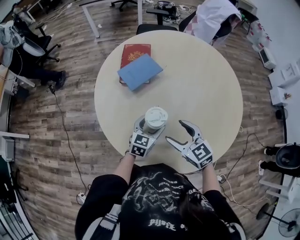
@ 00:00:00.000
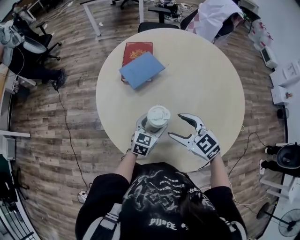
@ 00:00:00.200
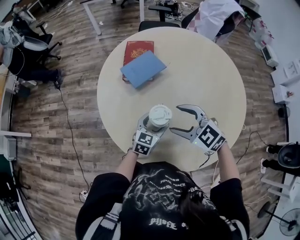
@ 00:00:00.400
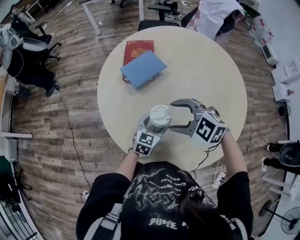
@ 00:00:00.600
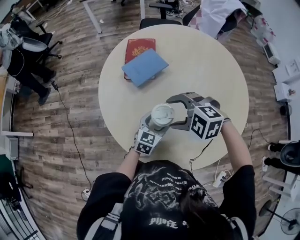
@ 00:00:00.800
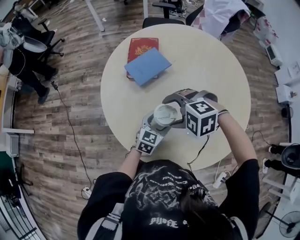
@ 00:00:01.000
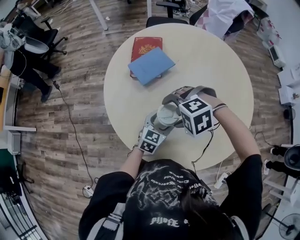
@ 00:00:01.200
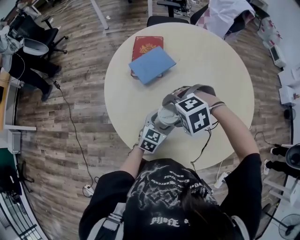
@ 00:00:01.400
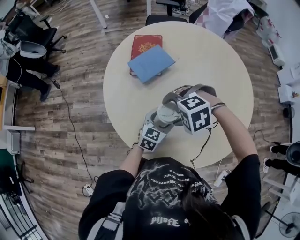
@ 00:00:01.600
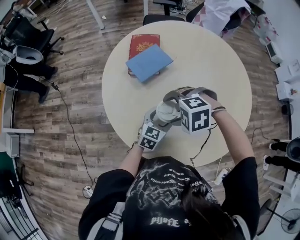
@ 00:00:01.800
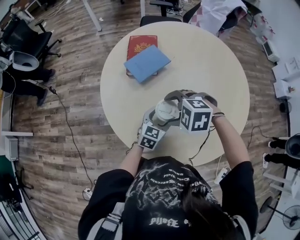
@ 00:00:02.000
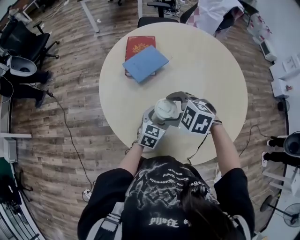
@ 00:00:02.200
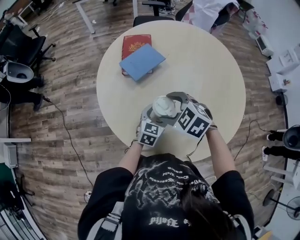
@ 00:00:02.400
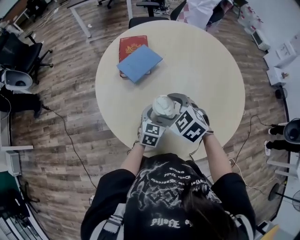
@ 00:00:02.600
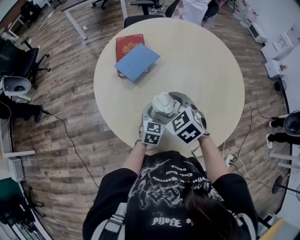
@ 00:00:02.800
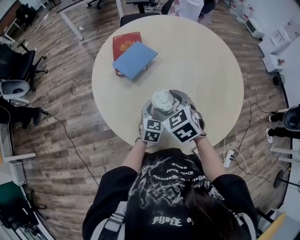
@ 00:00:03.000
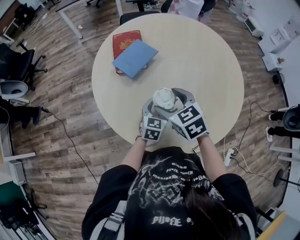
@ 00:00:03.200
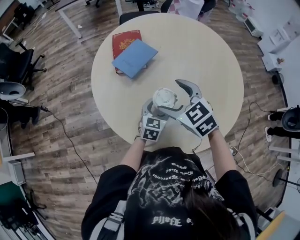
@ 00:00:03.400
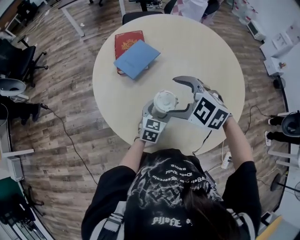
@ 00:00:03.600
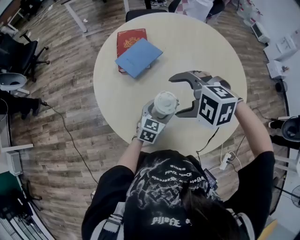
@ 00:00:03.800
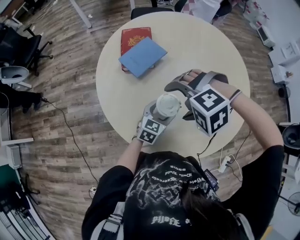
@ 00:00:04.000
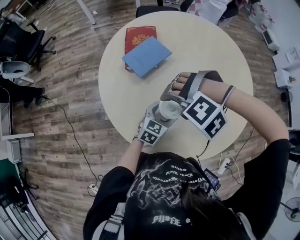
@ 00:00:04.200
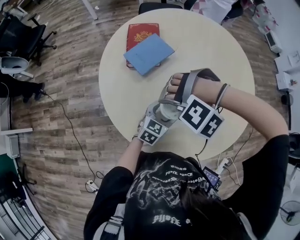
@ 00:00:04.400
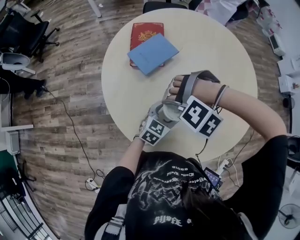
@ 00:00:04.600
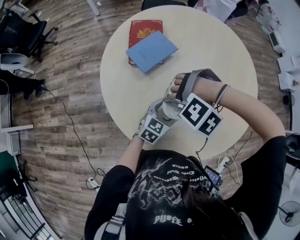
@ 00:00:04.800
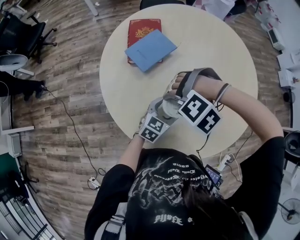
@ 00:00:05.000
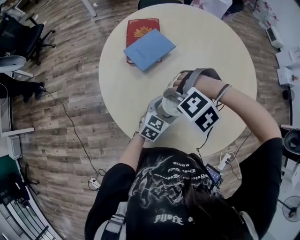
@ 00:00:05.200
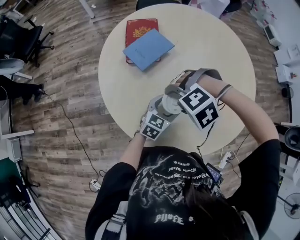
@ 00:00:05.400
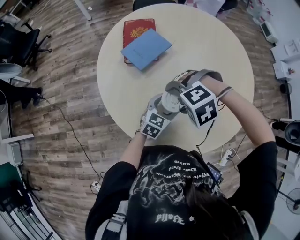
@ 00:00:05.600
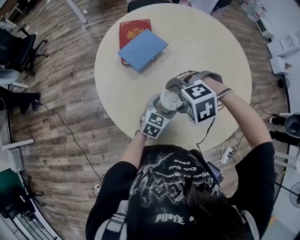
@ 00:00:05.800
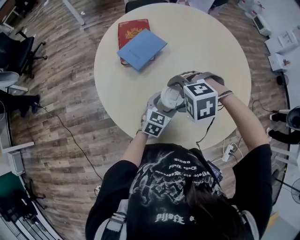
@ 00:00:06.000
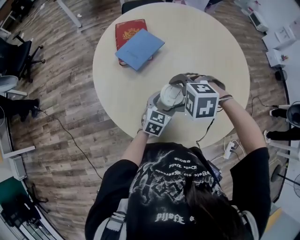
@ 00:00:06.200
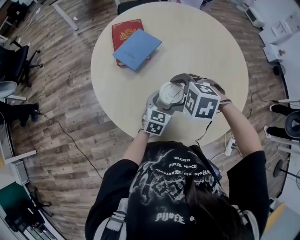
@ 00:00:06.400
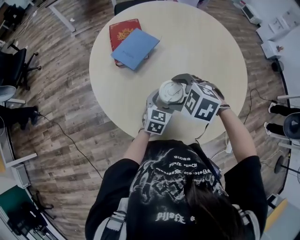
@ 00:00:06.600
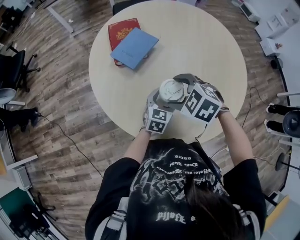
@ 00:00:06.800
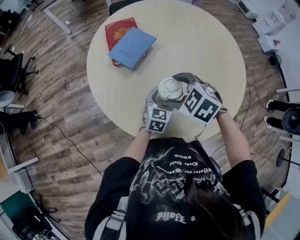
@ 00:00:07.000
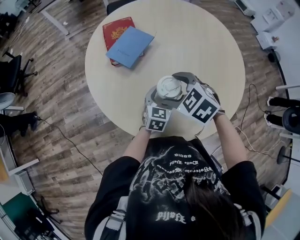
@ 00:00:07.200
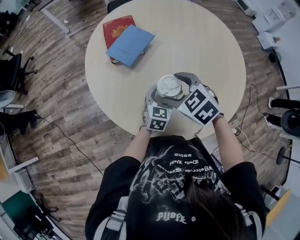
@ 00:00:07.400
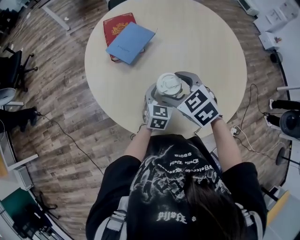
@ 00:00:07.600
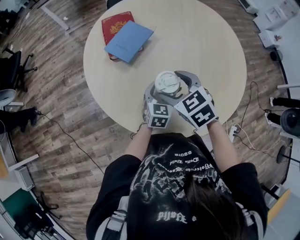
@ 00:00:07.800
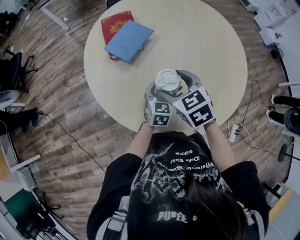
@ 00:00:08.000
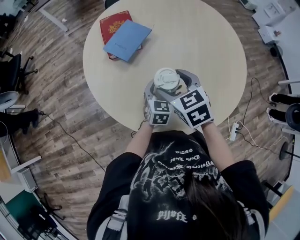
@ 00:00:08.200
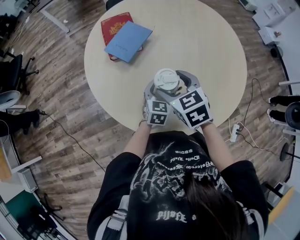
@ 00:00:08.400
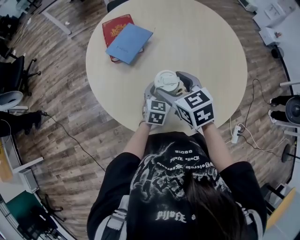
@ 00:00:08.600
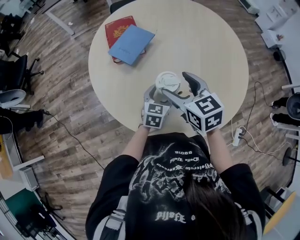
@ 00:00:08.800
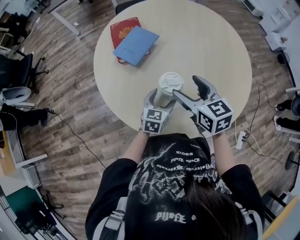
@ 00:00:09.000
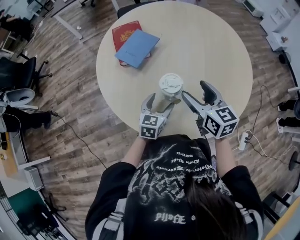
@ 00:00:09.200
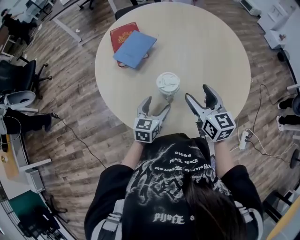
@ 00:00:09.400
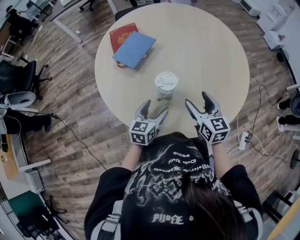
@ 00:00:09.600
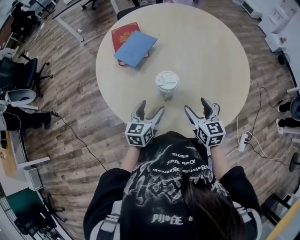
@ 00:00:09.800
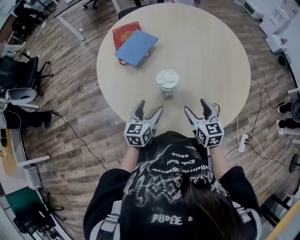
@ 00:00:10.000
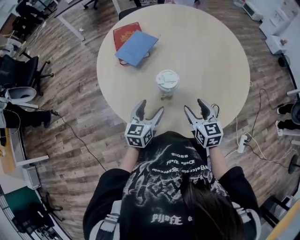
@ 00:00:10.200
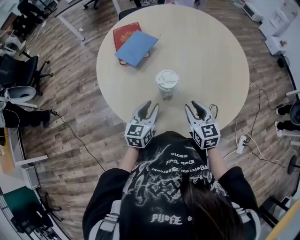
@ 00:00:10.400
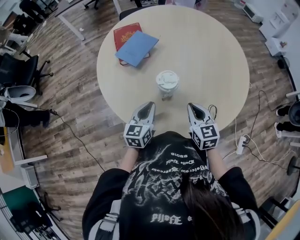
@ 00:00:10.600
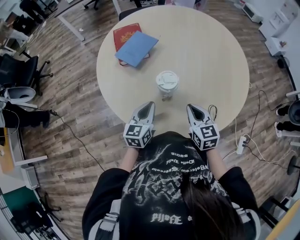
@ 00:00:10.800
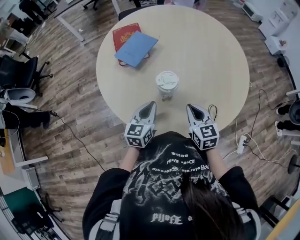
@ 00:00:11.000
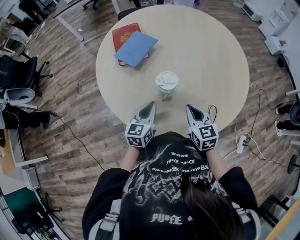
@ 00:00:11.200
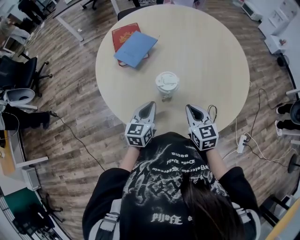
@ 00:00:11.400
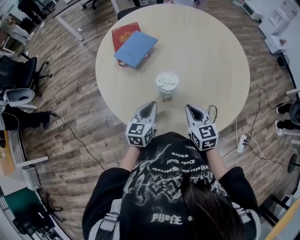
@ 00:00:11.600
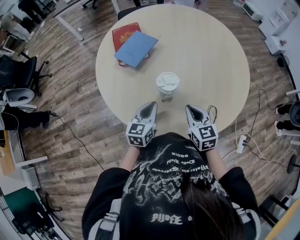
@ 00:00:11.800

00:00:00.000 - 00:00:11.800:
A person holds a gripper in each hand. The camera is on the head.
00:00:00.000 - 00:00:01.400: The right gripper moves approximately 10 cm, and tips its fingers downward by roughly 50 degrees.
00:00:01.400 - 00:00:03.000: The right gripper rotates around the line of its fingers by about 70 degrees, clockwise from behind.
00:00:03.000 - 00:00:04.400: The right gripper rolls counterclockwise, seen from behind, by some 100 degrees.
00:00:04.400 - 00:00:06.000: The right gripper rotates around the line of its fingers by about 50 degrees, clockwise from behind.
00:00:06.000 - 00:00:07.400: The right gripper rotates around the line of its fingers by roughly 50 degrees, clockwise from behind.
00:00:07.400 - 00:00:08.800: The right gripper swivels roughly 30 degrees.
00:00:08.800 - 00:00:10.400: The right gripper heads downward, to the right and backward, covering about 15 cm, and closes, while the left gripper moves backward and to the left, approximately 10 cm, and closes up.
00:00:10.400 - 00:00:11.800: The left gripper closes up.

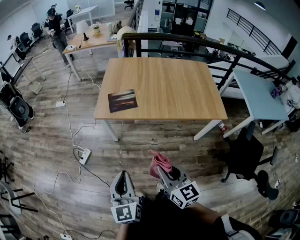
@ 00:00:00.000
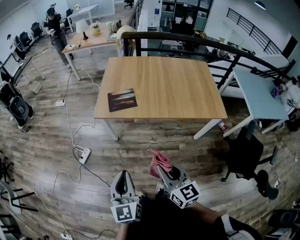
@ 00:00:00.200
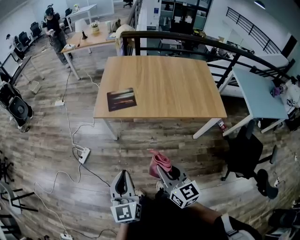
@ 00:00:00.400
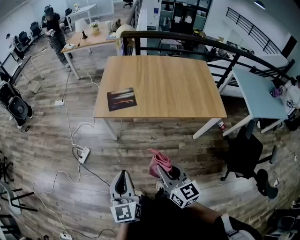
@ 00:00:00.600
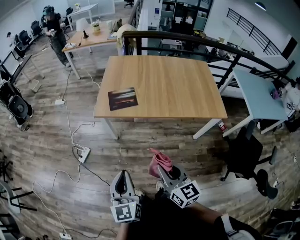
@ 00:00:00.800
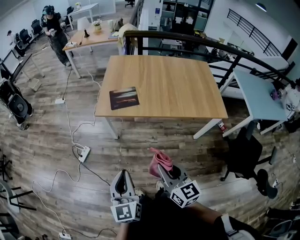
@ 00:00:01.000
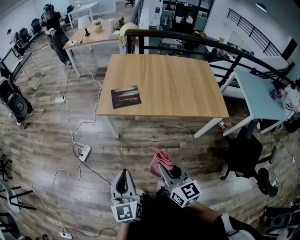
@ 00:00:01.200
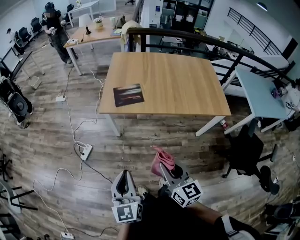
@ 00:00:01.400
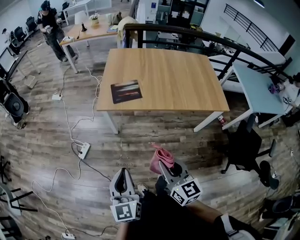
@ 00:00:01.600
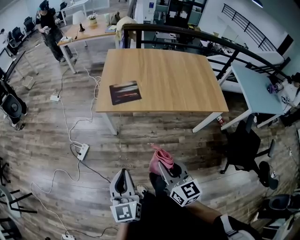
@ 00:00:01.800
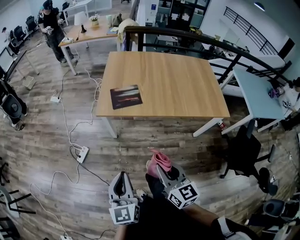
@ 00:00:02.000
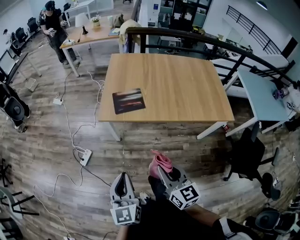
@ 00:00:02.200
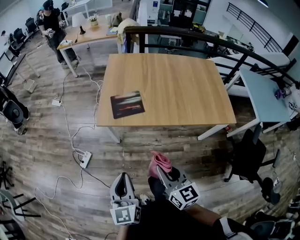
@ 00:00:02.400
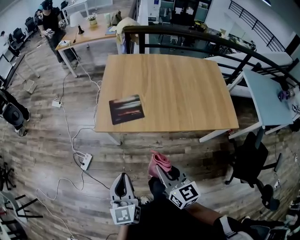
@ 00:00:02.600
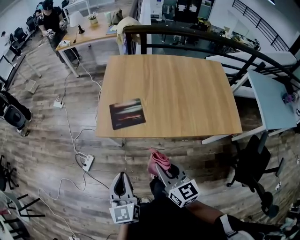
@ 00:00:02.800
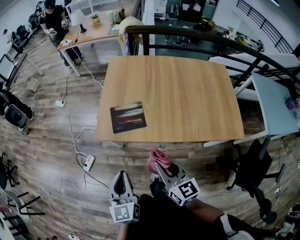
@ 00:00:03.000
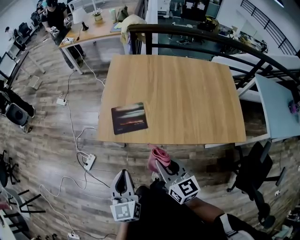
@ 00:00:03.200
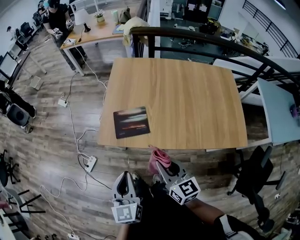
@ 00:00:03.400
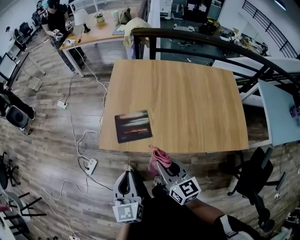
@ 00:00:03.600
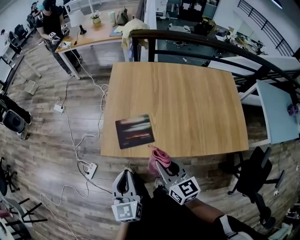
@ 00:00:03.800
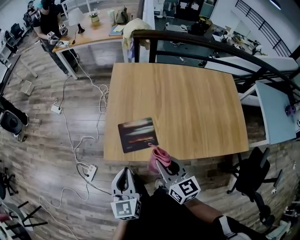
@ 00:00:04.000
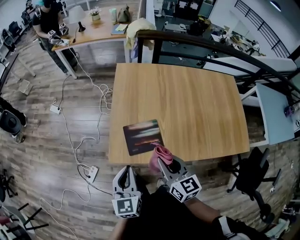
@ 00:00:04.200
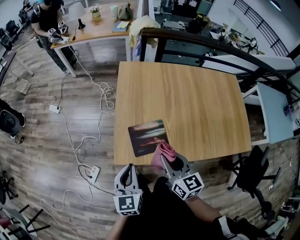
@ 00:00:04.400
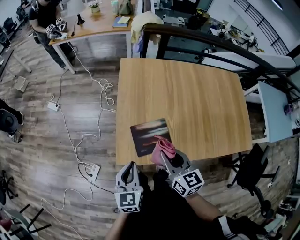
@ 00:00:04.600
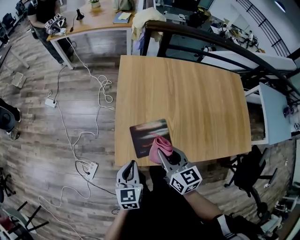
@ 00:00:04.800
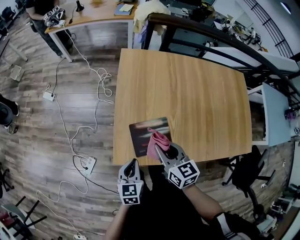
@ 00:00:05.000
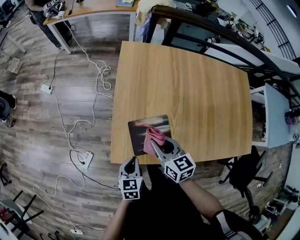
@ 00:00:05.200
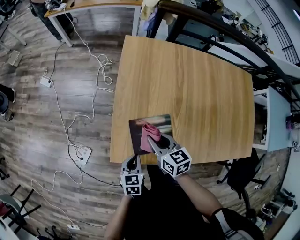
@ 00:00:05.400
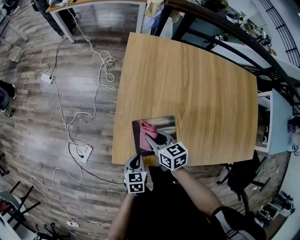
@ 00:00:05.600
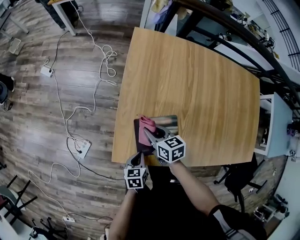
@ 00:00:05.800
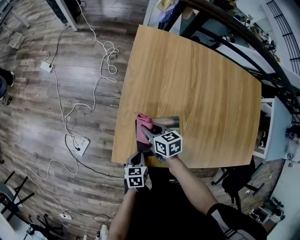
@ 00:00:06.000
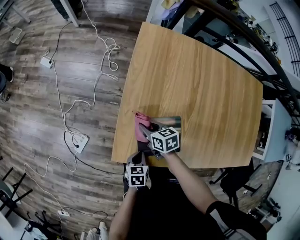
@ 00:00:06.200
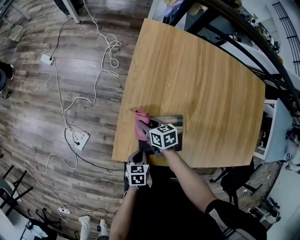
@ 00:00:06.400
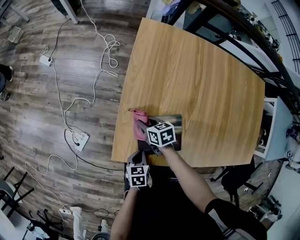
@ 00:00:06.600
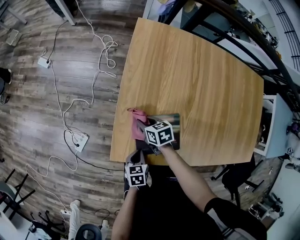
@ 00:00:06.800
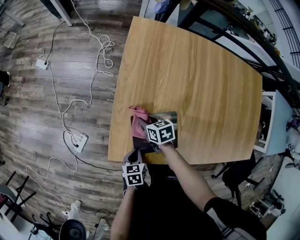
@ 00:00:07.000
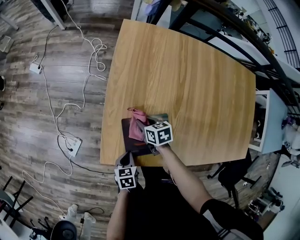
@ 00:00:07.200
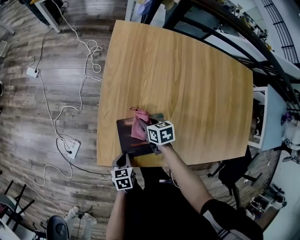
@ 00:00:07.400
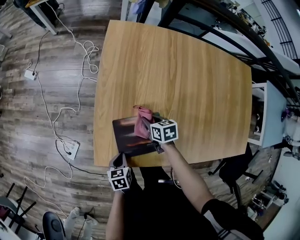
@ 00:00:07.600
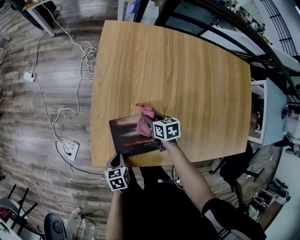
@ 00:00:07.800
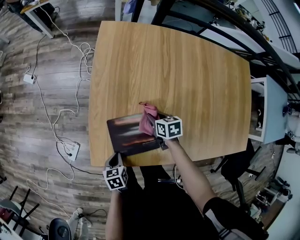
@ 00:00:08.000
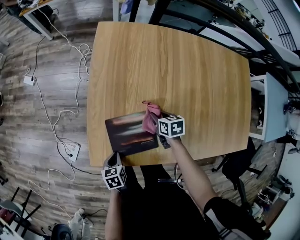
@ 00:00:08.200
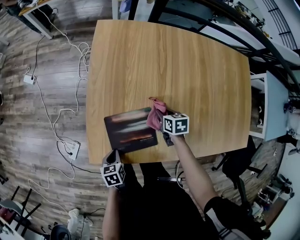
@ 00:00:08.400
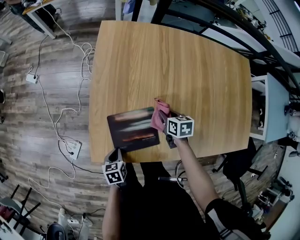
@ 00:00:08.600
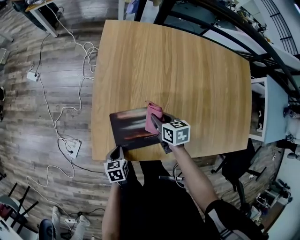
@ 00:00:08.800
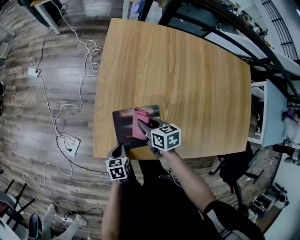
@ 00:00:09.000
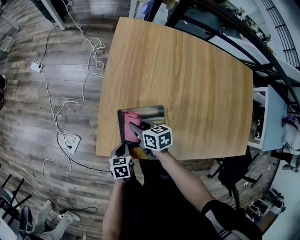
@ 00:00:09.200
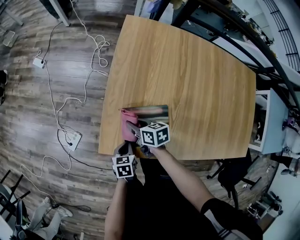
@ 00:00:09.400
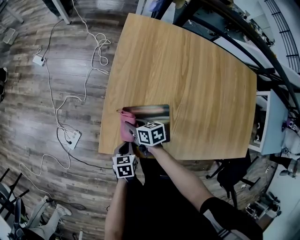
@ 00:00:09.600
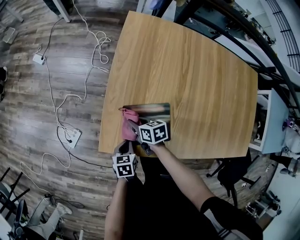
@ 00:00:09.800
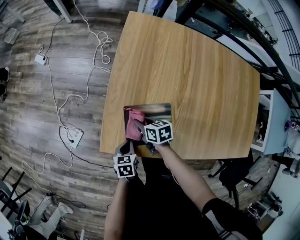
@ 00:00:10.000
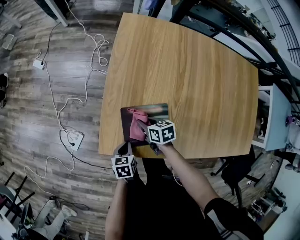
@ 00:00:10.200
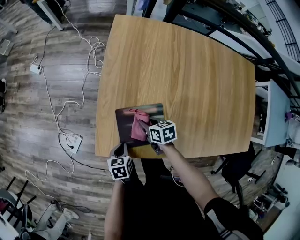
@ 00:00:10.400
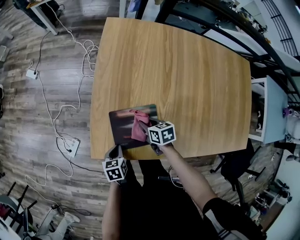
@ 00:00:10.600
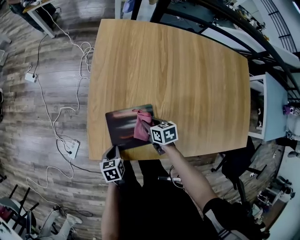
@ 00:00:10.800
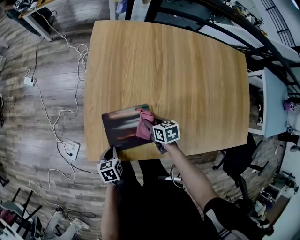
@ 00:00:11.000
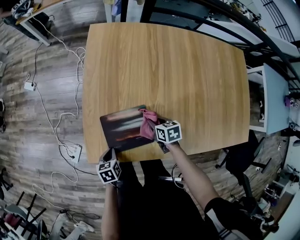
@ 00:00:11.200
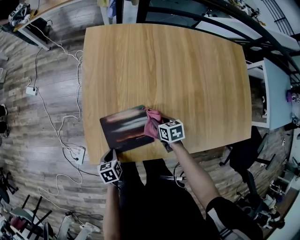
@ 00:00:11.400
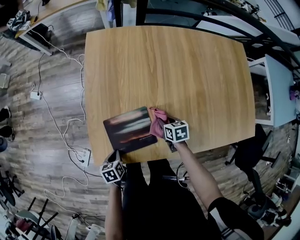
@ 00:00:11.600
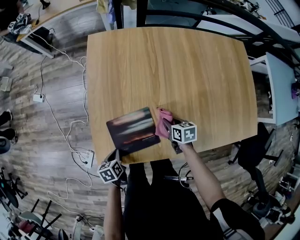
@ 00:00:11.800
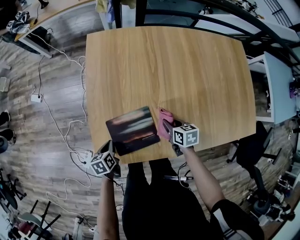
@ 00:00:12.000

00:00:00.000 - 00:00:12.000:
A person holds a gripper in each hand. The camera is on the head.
00:00:00.000 - 00:00:01.600: The two grippers go roughly 5 cm to the left.
00:00:01.600 - 00:00:03.000: The grippers both shift forward by about 25 cm.
00:00:03.000 - 00:00:04.400: The two grippers go some 25 cm forward.
00:00:04.400 - 00:00:06.000: The left gripper shifts about 30 cm downward, and angles its fingers downward, by some 30 degrees. Meanwhile the right gripper shifts some 30 cm downward and forward, and swivels some 40 degrees.
00:00:06.000 - 00:00:07.600: The right gripper is displaced to the right and downward by some 15 cm.
00:00:07.600 - 00:00:09.000: The right gripper moves upward, about 5 cm, and goes to the right and returns, roughly 10 cm each way.
00:00:09.000 - 00:00:10.400: The right gripper heads downward, covering roughly 5 cm, and moves approximately 10 cm to the left and comes back.
00:00:10.400 - 00:00:12.000: The right gripper heads to the right, covering roughly 20 cm, and changes its angle by roughly 20 degrees, while the left gripper shifts some 5 cm forward.
